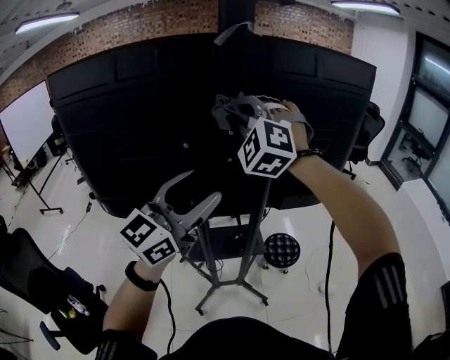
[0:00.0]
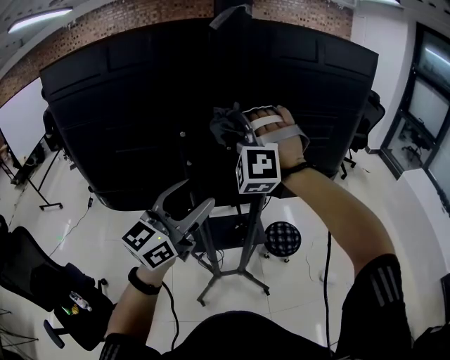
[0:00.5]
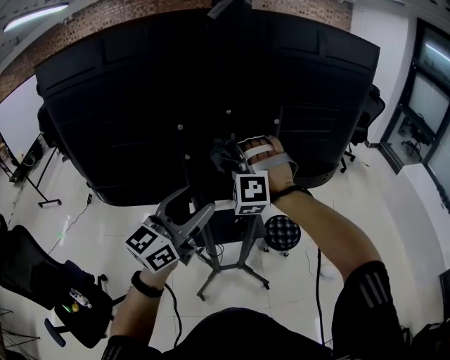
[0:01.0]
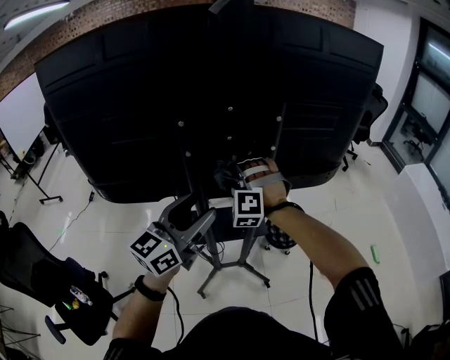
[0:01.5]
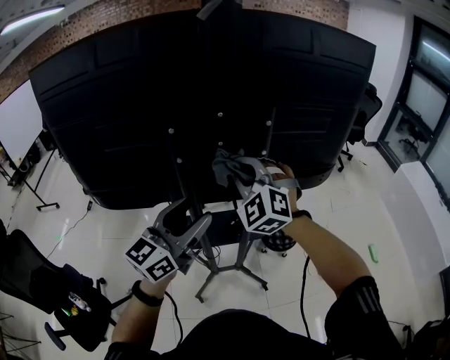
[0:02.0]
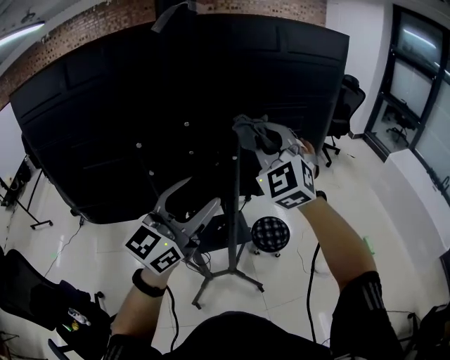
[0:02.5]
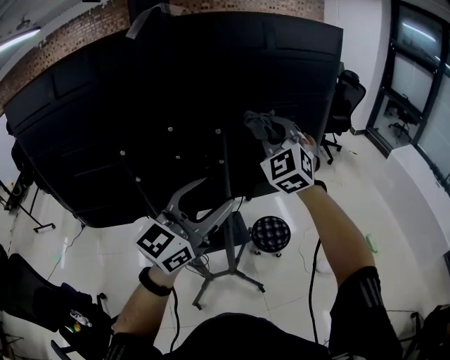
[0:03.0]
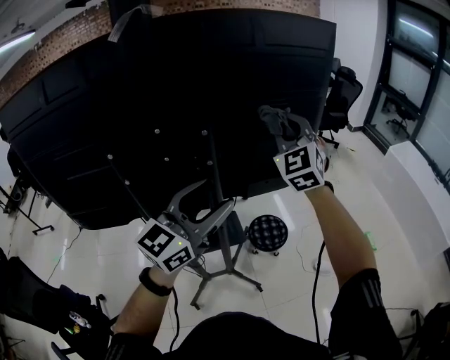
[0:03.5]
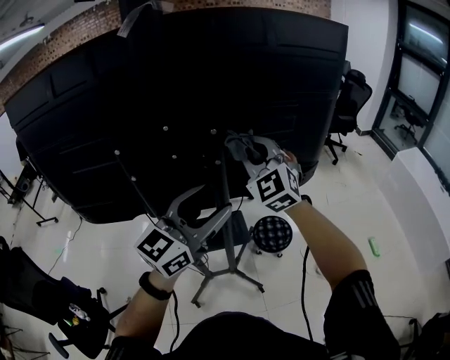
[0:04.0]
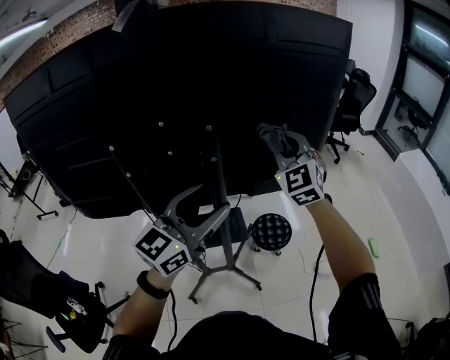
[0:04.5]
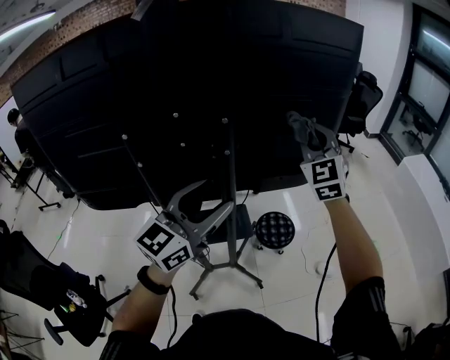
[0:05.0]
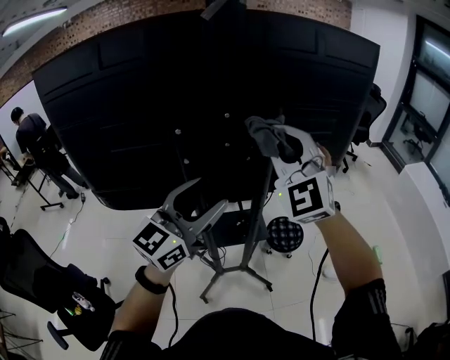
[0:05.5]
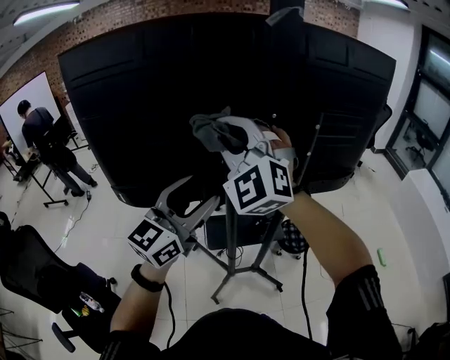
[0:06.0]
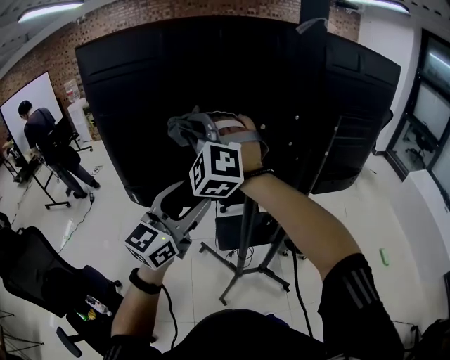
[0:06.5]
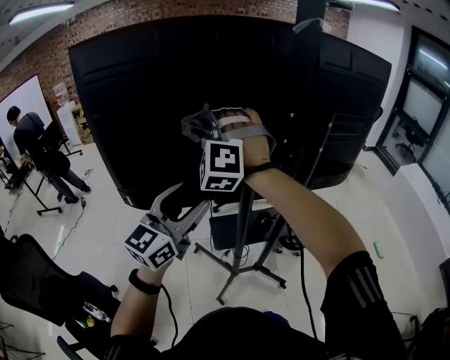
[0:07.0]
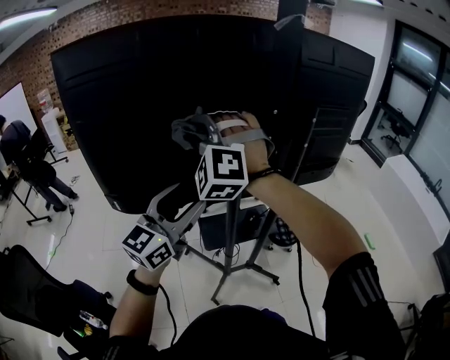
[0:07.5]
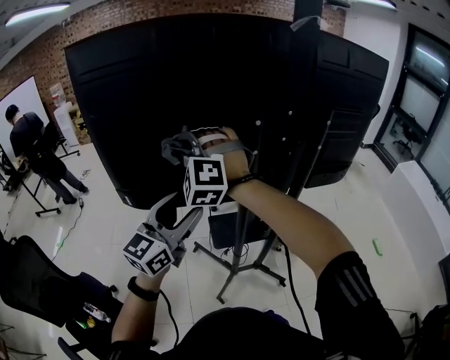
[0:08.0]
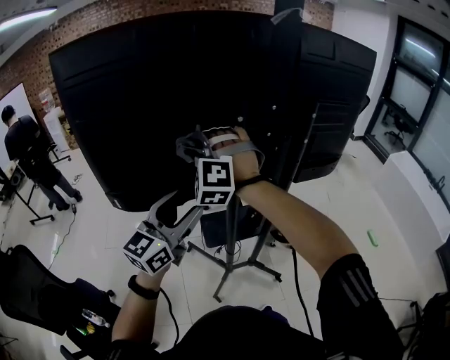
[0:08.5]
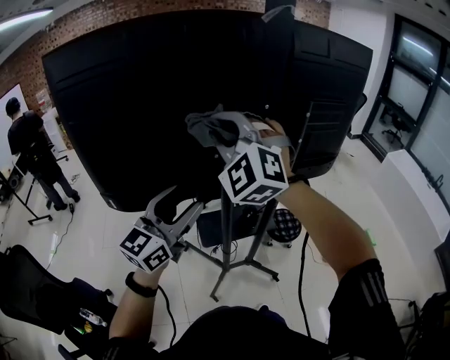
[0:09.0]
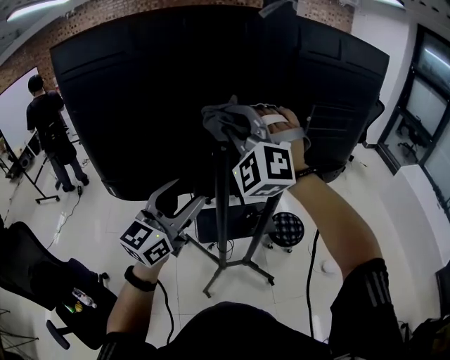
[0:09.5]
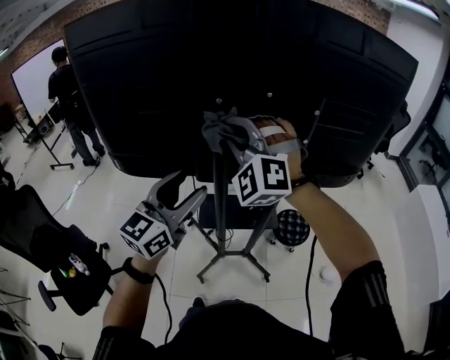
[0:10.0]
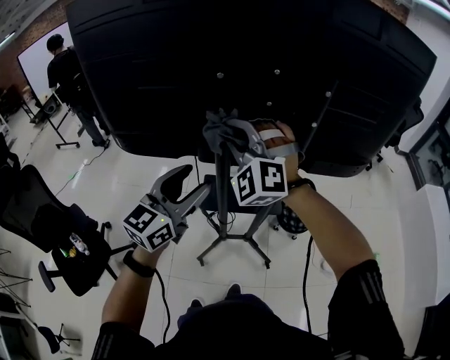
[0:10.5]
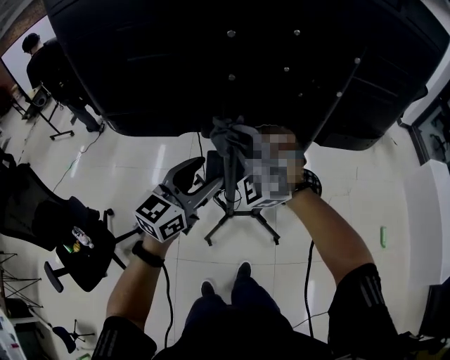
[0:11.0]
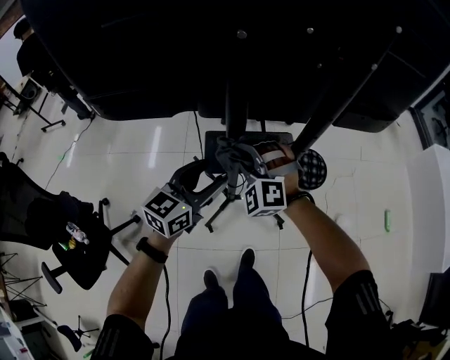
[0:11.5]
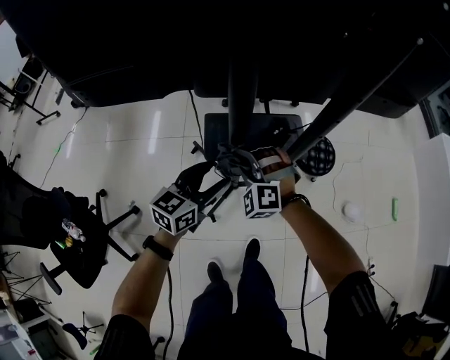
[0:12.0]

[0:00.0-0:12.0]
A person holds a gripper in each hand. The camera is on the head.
0:00.0 to 0:02.0: The right gripper heads downward, covering about 20 cm. Meanwhile the left gripper goes roughly 10 cm downward.
0:02.0 to 0:04.0: Both grippers travel together to the right and forward, roughly 15 cm.
0:04.0 to 0:06.0: The right gripper travels to the left and backward by some 35 cm. Meanwhile the left gripper is displaced to the left by approximately 25 cm.
0:06.0 to 0:08.0: The right gripper goes left and right, some 15 cm each way, reversing 2 times, and rotates approximately 30 degrees, while the left gripper moves to the left and downward, approximately 10 cm.
0:08.0 to 0:10.0: The right gripper heads to the right, covering roughly 20 cm. The left gripper is displaced to the right by approximately 15 cm.
0:10.0 to 0:12.0: Both grippers move downward, some 40 cm. The left gripper swivels some 30 degrees, while the right gripper changes its angle by approximately 30 degrees.

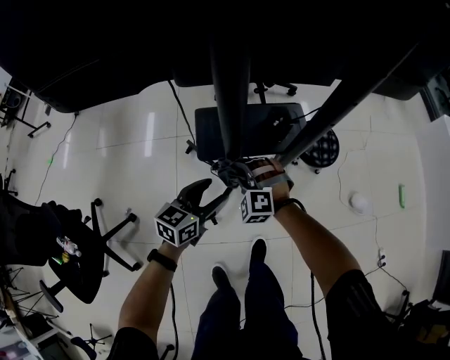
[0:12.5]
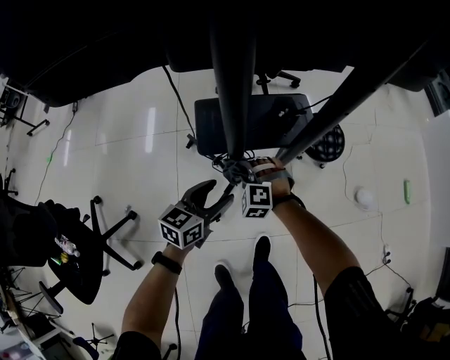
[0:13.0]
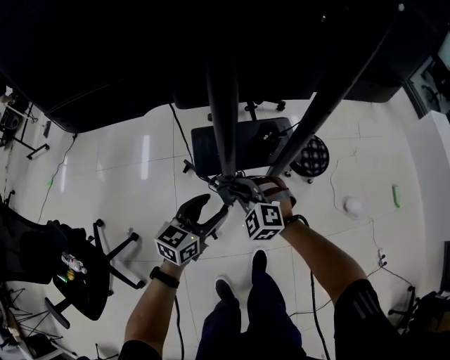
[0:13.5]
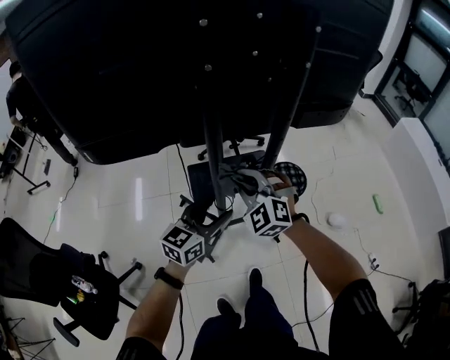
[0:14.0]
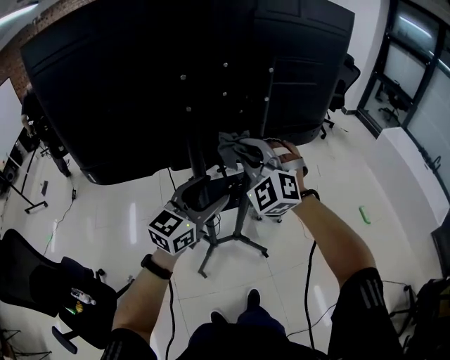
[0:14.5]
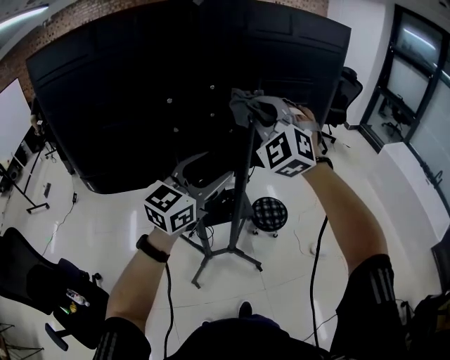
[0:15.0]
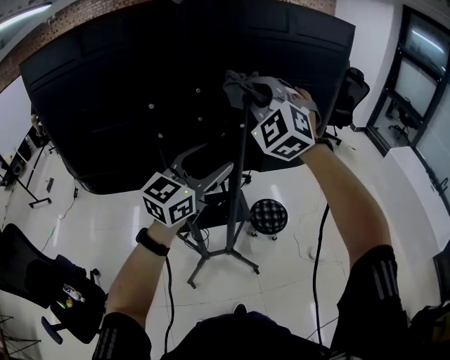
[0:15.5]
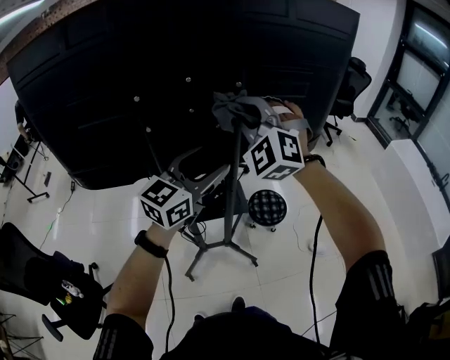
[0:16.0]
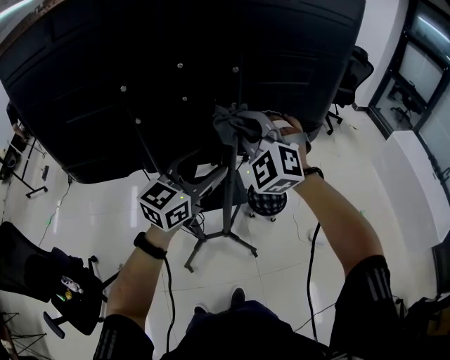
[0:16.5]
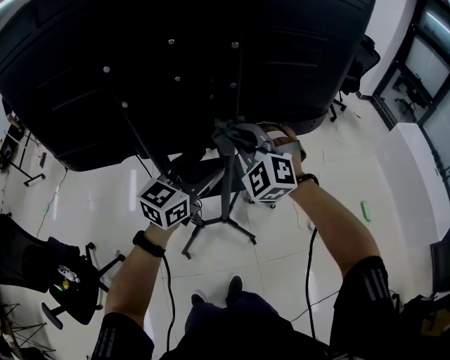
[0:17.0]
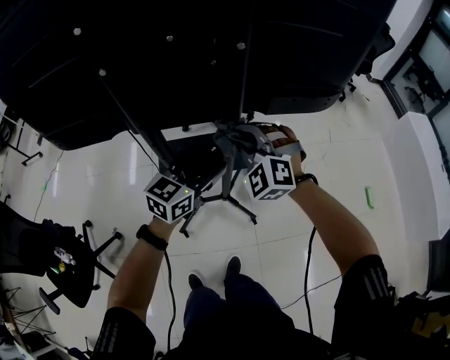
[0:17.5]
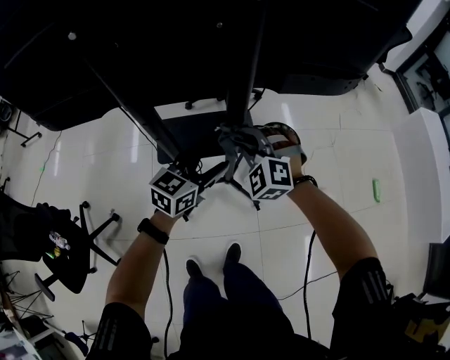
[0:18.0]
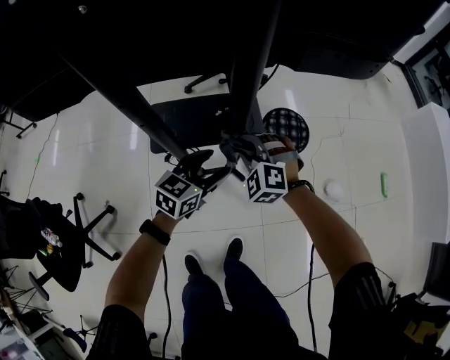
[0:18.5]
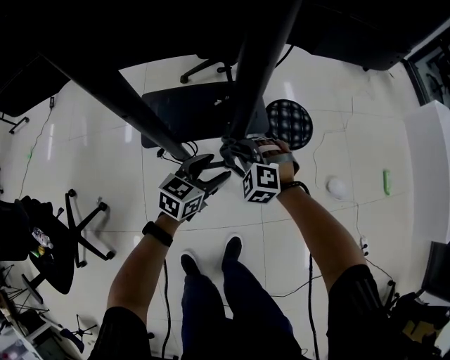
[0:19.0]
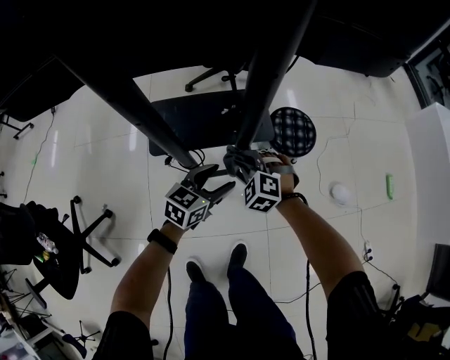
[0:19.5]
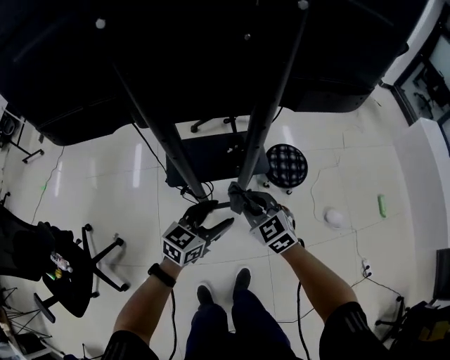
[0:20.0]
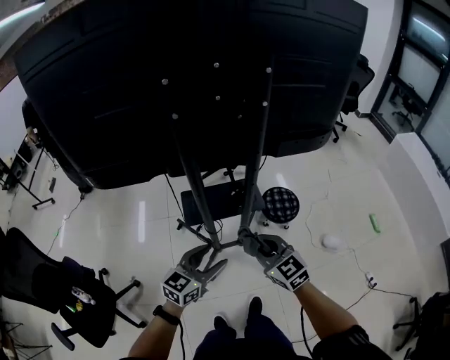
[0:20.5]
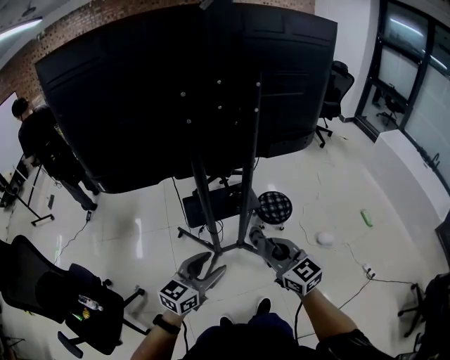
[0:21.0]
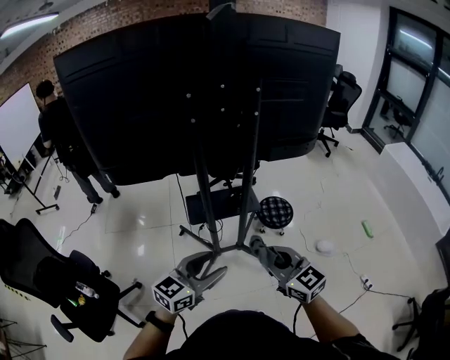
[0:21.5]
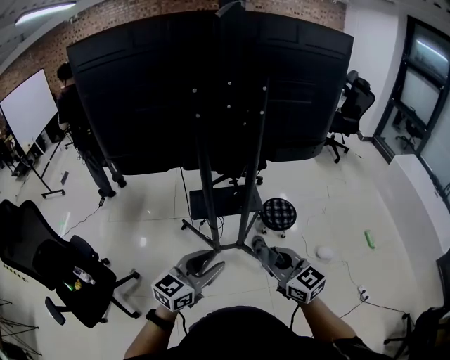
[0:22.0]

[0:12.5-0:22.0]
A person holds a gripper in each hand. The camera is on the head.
0:12.5 to 0:14.5: Both grippers travel together upward, approximately 50 cm. The right gripper tips its fingers upward by about 30 degrees, while the left gripper swivels roughly 30 degrees.
0:14.5 to 0:16.5: Both grippers move forward and to the right, approximately 15 cm. The right gripper goes upward and returns, approximately 20 cm each way.
0:16.5 to 0:18.0: Both grippers travel together downward, roughly 30 cm. The left gripper rotates about 20 degrees. The right gripper rotates roughly 20 degrees.
0:18.0 to 0:20.0: The grippers both shift downward and backward by approximately 15 cm. The right gripper twists about 40 degrees clockwise, seen from behind.
0:20.0 to 0:22.0: The two grippers go roughly 40 cm backward and upward. The right gripper changes its angle by about 30 degrees.

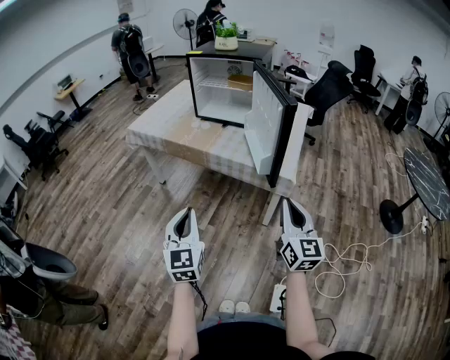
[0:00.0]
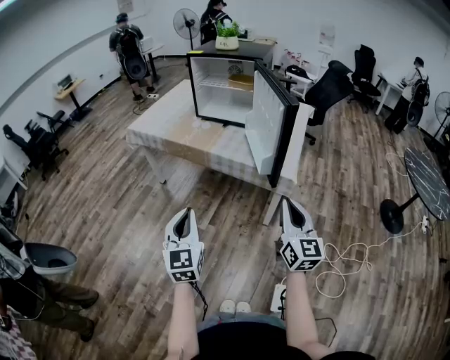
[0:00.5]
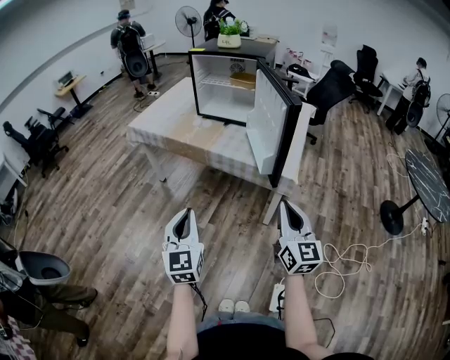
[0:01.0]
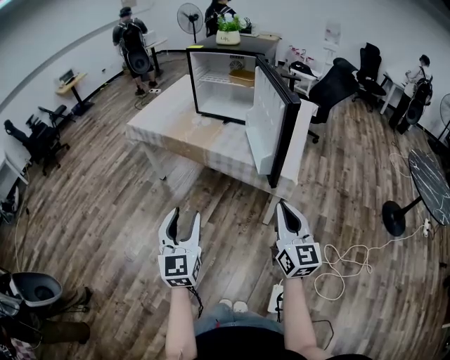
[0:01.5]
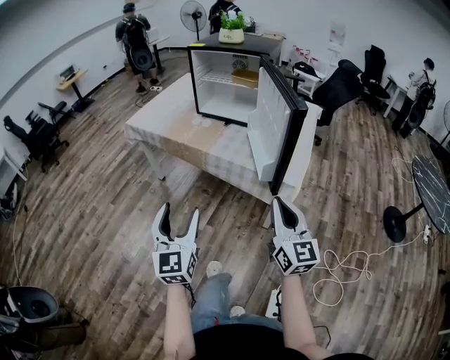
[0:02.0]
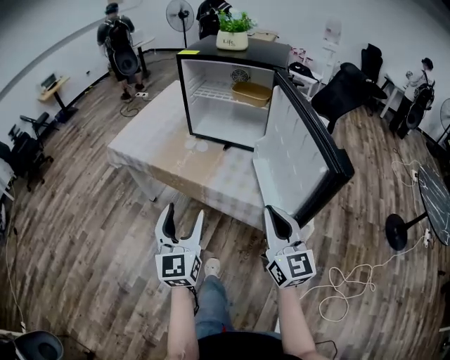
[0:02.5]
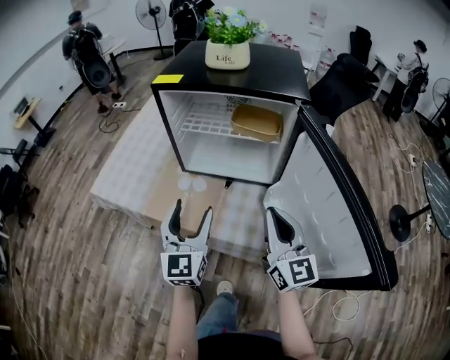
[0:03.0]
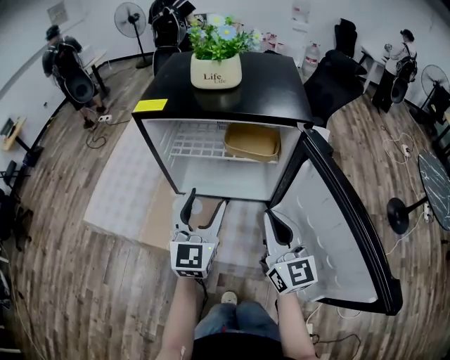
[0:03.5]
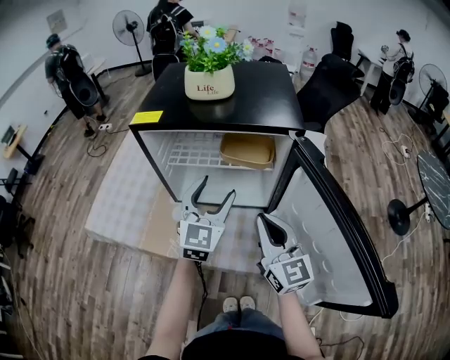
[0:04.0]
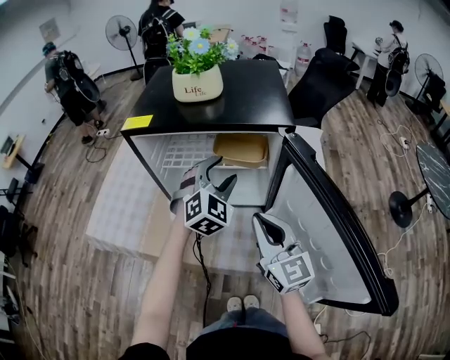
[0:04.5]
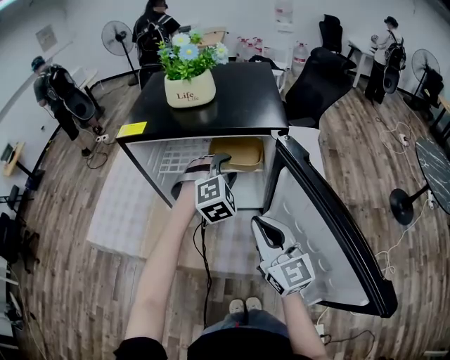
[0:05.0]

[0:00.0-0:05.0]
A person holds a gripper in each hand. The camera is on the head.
0:00.0 to 0:02.5: The two grippers go roughly 30 cm forward. The left gripper opens its fingers.
0:02.5 to 0:05.0: The left gripper travels forward by some 50 cm, and tips its fingers downward by approximately 40 degrees; the right gripper shifts roughly 30 cm forward.
